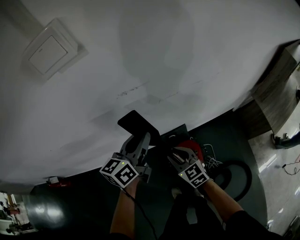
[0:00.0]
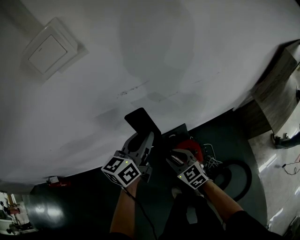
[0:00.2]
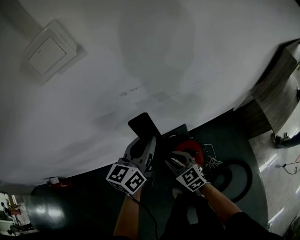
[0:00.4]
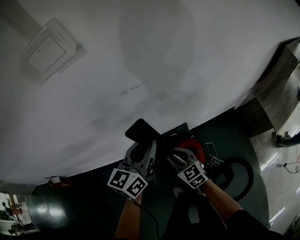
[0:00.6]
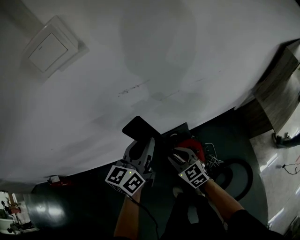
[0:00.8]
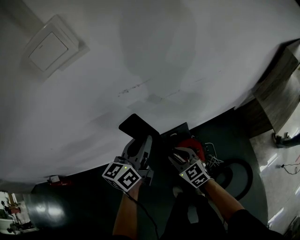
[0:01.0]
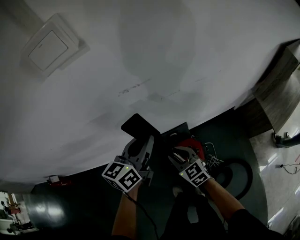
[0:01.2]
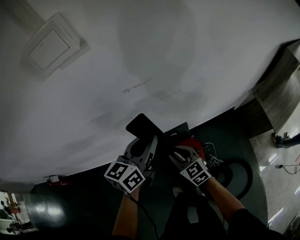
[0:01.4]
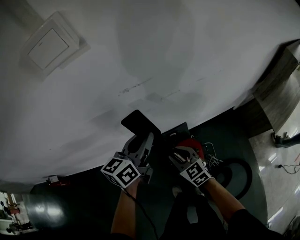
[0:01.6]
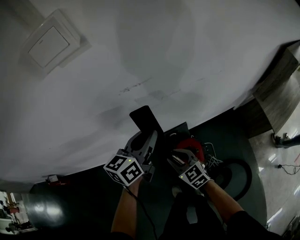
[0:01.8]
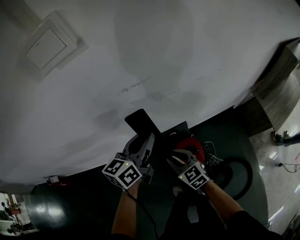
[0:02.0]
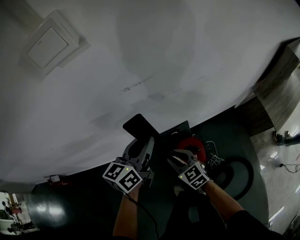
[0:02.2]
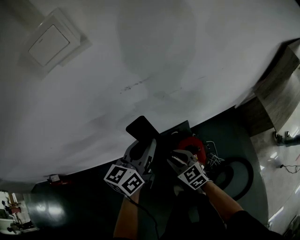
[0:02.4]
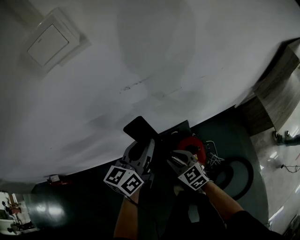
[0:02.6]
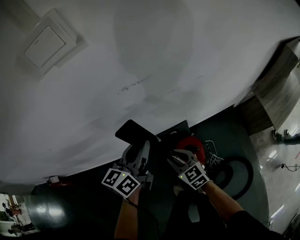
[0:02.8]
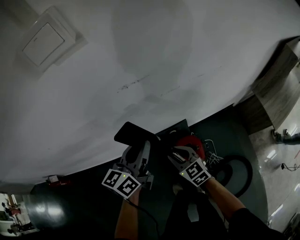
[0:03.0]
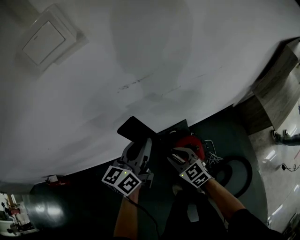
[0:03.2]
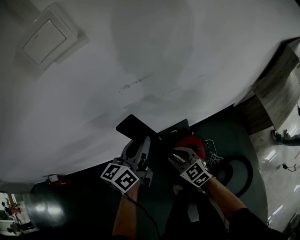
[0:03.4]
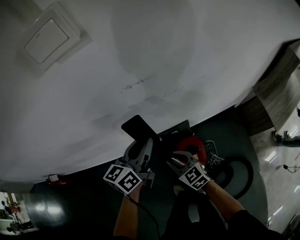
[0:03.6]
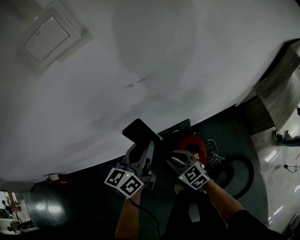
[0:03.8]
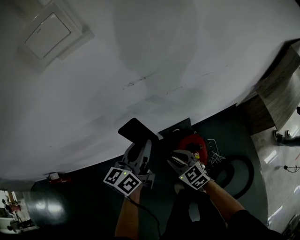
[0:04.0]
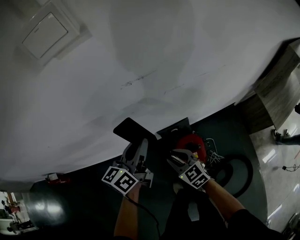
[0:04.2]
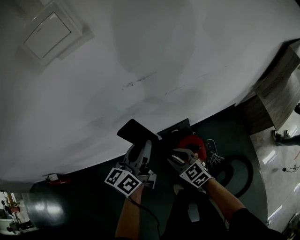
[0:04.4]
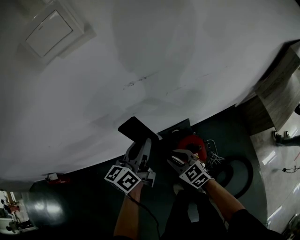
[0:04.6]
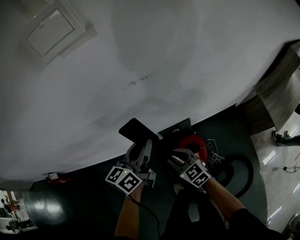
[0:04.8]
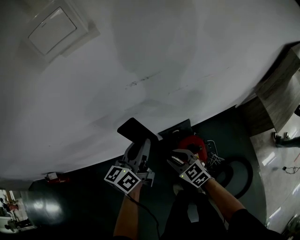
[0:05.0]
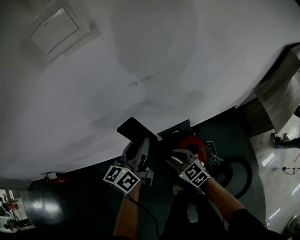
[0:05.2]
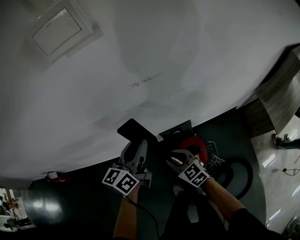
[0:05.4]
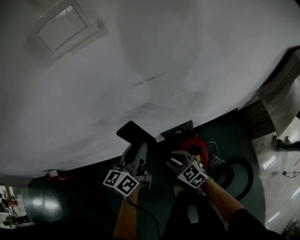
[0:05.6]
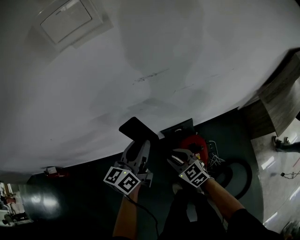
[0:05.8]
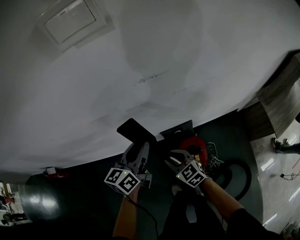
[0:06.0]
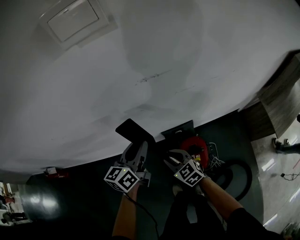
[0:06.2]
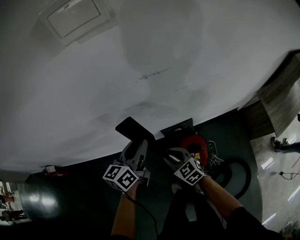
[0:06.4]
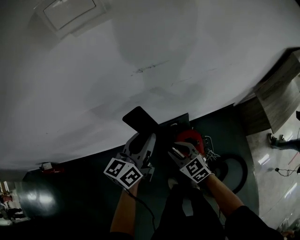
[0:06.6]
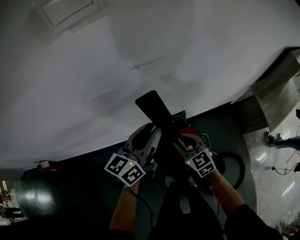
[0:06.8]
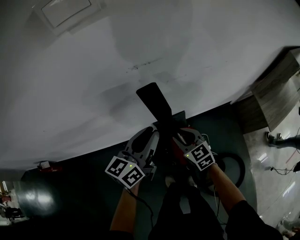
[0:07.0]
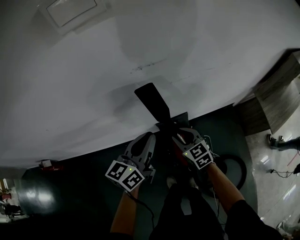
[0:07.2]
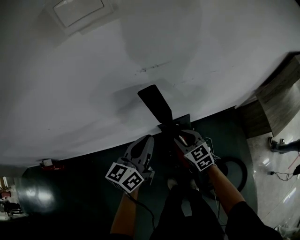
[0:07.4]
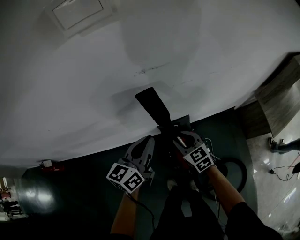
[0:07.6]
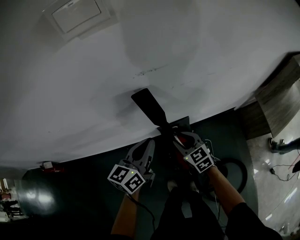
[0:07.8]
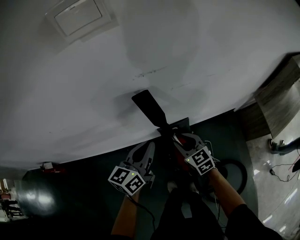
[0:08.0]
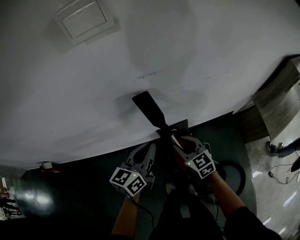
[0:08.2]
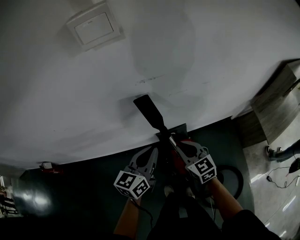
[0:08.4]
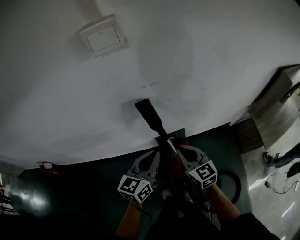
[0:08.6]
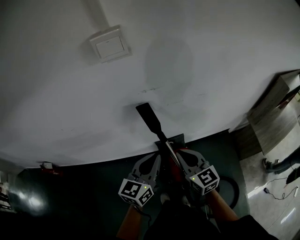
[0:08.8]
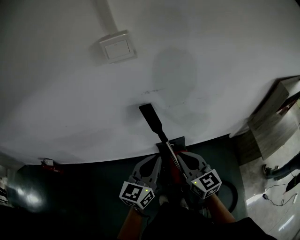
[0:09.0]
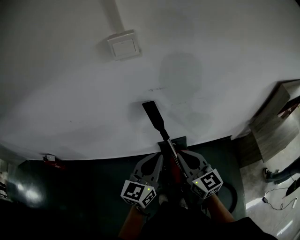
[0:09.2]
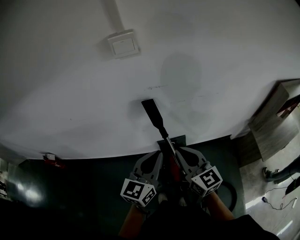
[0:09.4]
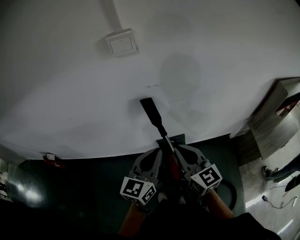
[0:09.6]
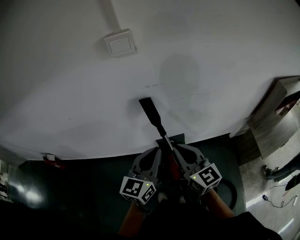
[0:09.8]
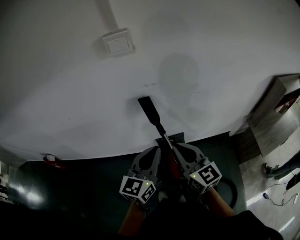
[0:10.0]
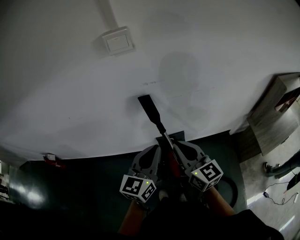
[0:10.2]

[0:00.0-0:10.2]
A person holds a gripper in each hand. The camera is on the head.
0:00.0 to 0:03.0: The grippers stay close to where they were, moving slightly.
0:03.0 to 0:04.4: The grippers stay close to where they were, moving slightly.
0:04.4 to 0:05.8: The grippers move only a little.
0:05.8 to 0:07.2: The left gripper changes place by about 5 cm; the right gripper travels to the right by roughly 5 cm.
0:07.2 to 0:08.8: The right gripper moves upward and backward, about 20 cm, and closes its fingers; the left gripper is displaced backward and upward by approximately 10 cm.
0:08.8 to 0:10.2: The right gripper is displaced upward and backward by roughly 10 cm, while the left gripper goes roughly 5 cm backward and upward.

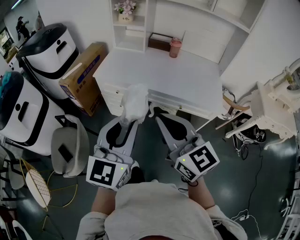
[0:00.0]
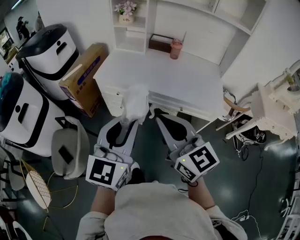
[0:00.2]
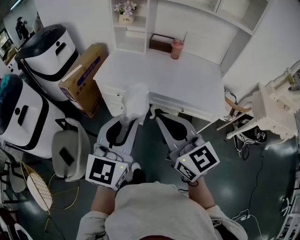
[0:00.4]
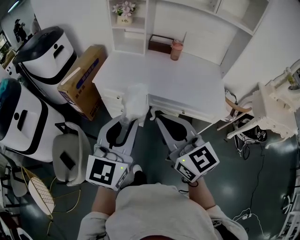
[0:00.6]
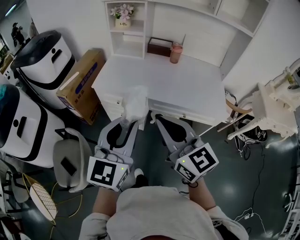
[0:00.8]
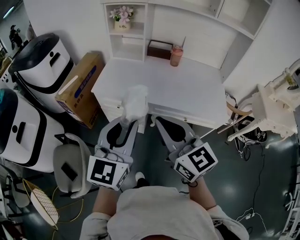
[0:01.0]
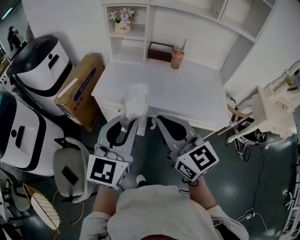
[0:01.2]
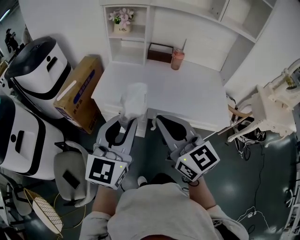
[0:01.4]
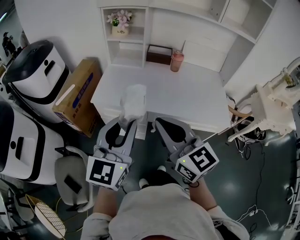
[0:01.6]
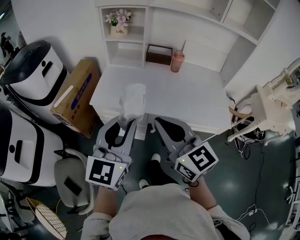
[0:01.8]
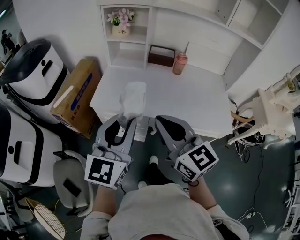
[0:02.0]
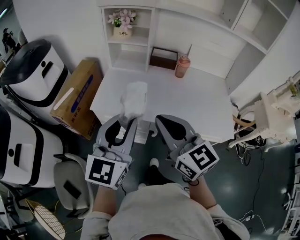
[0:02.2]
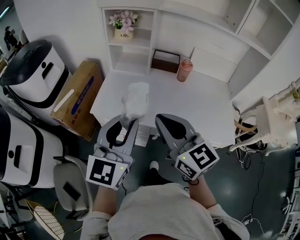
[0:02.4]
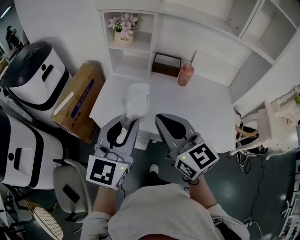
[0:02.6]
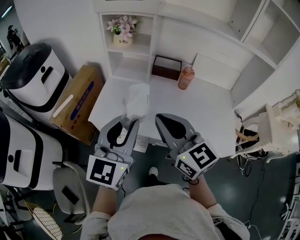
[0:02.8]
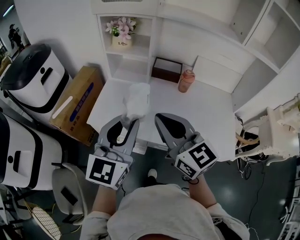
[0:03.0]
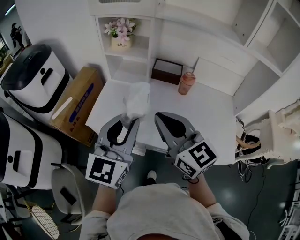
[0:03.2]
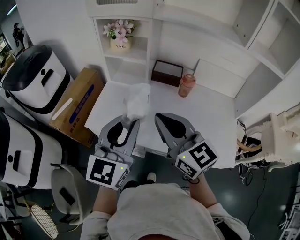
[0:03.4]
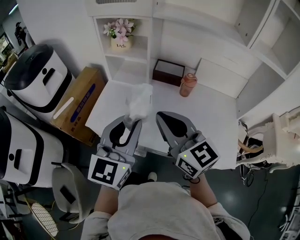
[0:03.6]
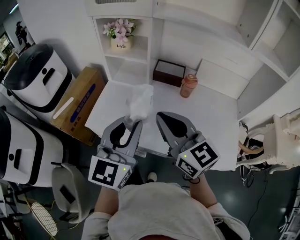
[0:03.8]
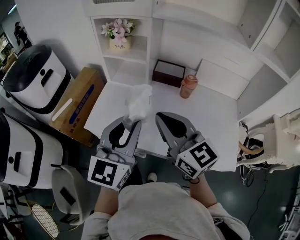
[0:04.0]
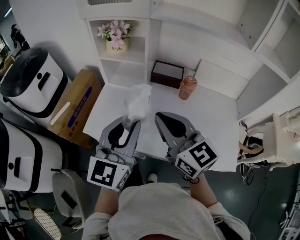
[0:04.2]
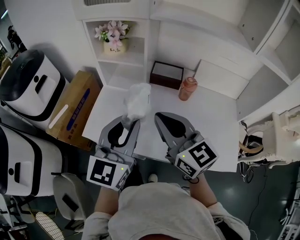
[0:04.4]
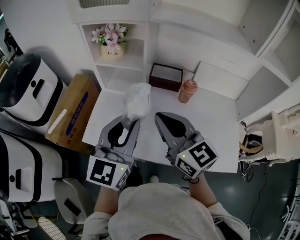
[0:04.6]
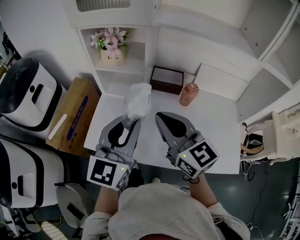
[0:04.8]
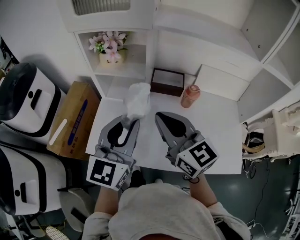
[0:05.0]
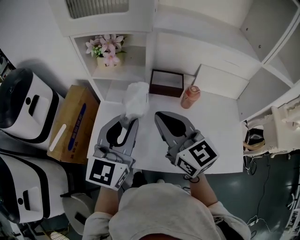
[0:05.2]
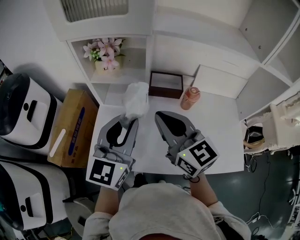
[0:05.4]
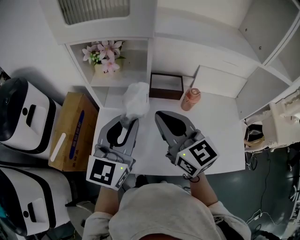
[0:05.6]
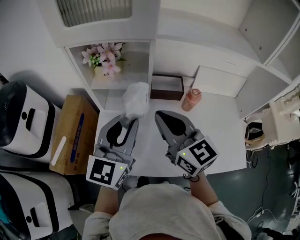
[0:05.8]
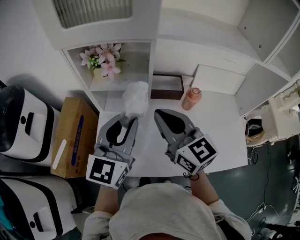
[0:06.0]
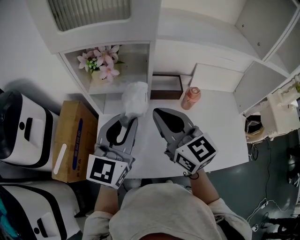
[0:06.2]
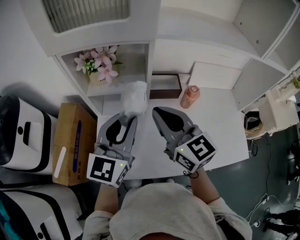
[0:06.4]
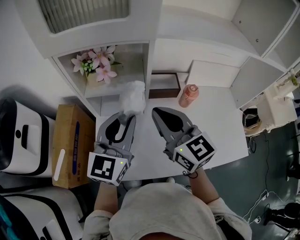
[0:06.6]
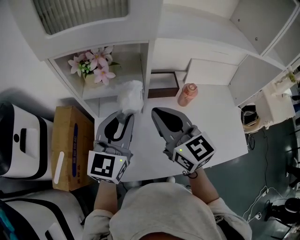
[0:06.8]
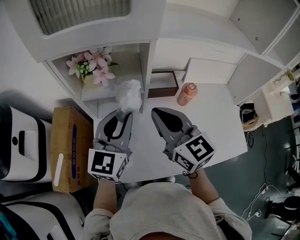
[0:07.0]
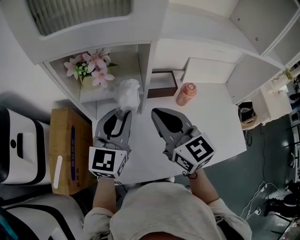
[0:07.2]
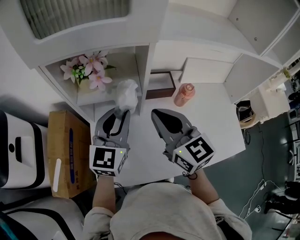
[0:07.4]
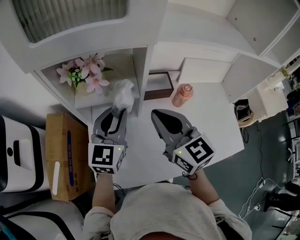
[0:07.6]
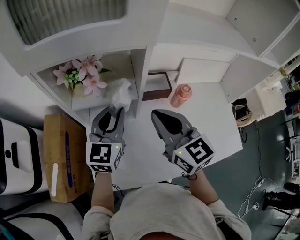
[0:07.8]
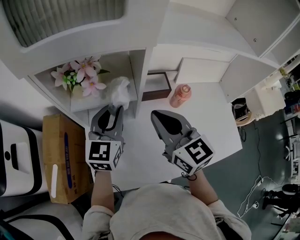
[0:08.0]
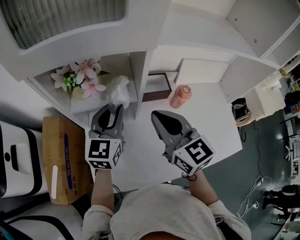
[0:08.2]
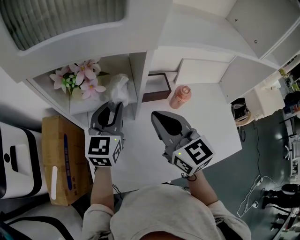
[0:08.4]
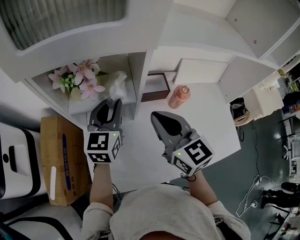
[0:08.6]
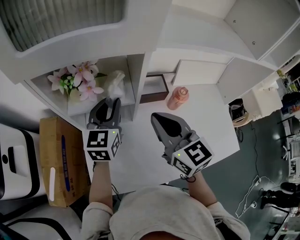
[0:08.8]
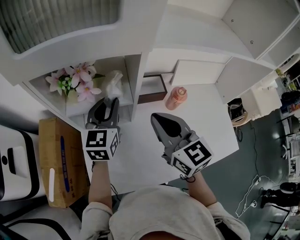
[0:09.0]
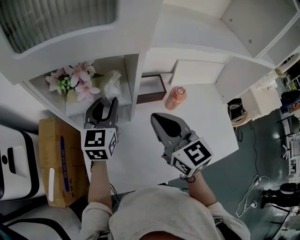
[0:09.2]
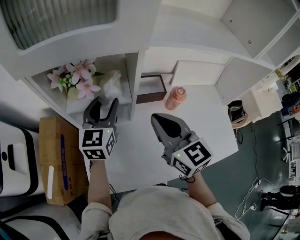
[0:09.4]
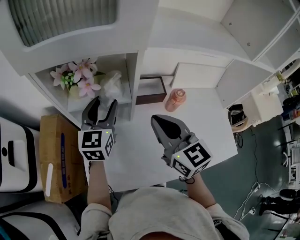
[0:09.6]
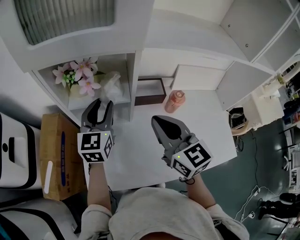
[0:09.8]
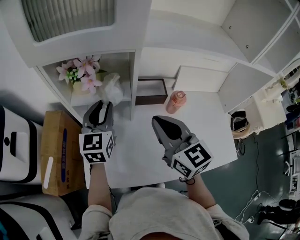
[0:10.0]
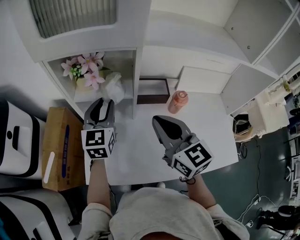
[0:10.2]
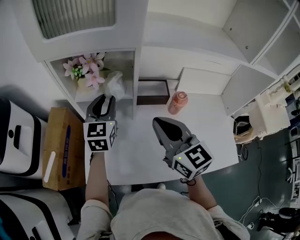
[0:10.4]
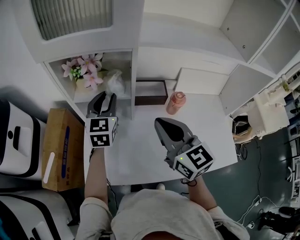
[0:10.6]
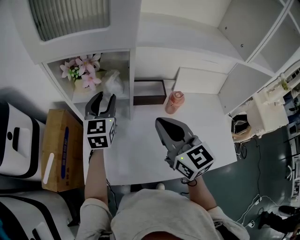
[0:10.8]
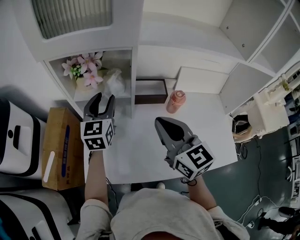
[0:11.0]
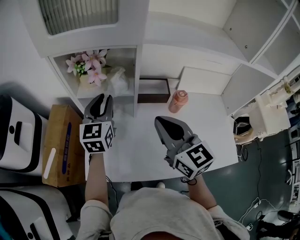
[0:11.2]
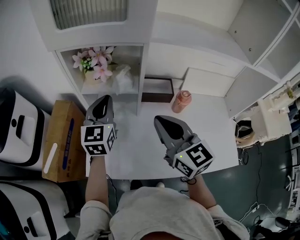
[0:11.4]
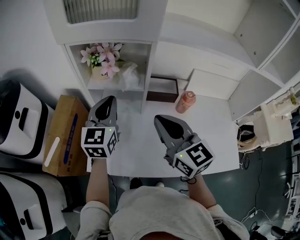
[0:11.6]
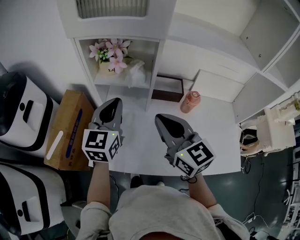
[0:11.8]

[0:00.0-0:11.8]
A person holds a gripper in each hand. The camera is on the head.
0:00.0 to 0:01.4: The right gripper travels forward and to the left by roughly 15 cm. The left gripper shifts approximately 15 cm forward.
0:01.4 to 0:03.0: Both grippers travel together forward, some 20 cm.
0:03.0 to 0:04.4: Both grippers move forward, about 10 cm.
0:04.4 to 0:06.0: The grippers both shift forward by about 15 cm.
0:06.0 to 0:07.4: The right gripper changes place by about 5 cm, while the left gripper heads forward and downward, covering roughly 10 cm.
0:07.4 to 0:08.8: The left gripper goes roughly 10 cm forward.
0:08.8 to 0:10.4: The right gripper is displaced backward by about 5 cm, while the left gripper opens, then closes once more.
0:10.4 to 0:11.8: The left gripper heads backward, covering roughly 10 cm, and closes, while the right gripper moves some 5 cm.

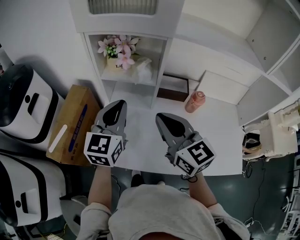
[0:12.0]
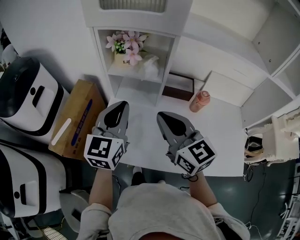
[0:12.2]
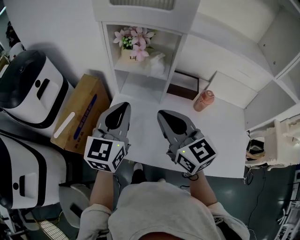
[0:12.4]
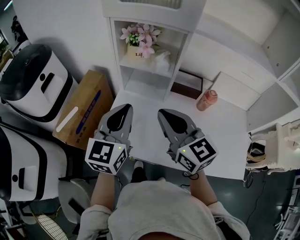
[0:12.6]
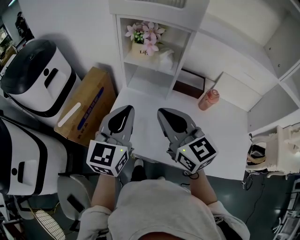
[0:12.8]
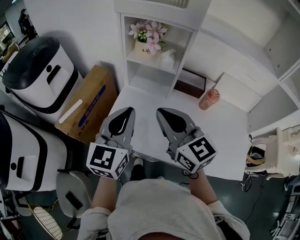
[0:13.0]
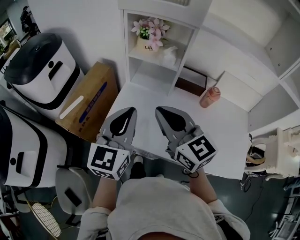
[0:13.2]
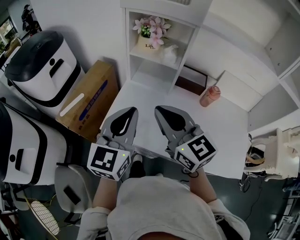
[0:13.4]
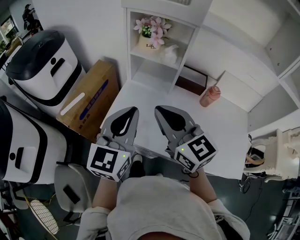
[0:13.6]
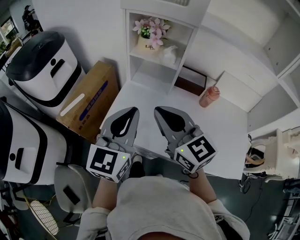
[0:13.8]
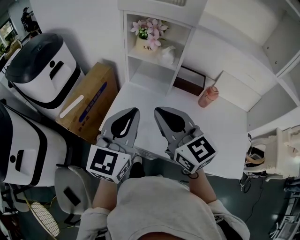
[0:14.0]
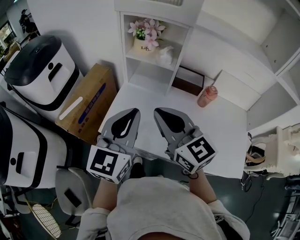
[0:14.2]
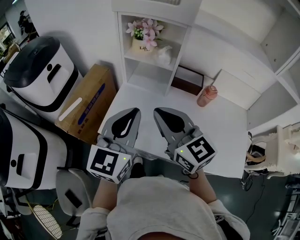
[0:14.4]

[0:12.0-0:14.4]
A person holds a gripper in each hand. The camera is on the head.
0:12.0 to 0:13.2: The right gripper shifts roughly 10 cm to the left and backward, while the left gripper moves backward, about 15 cm.
0:13.2 to 0:14.4: The grippers stay close to where they were, moving slightly.
